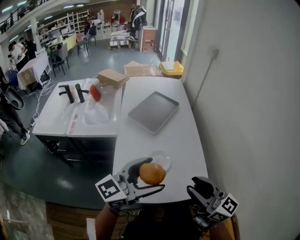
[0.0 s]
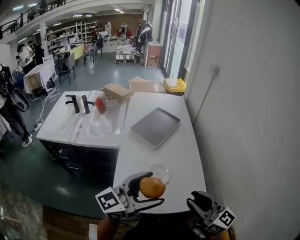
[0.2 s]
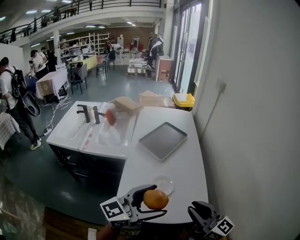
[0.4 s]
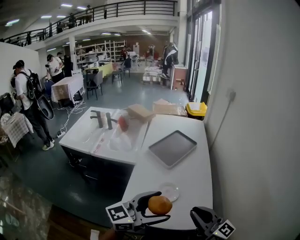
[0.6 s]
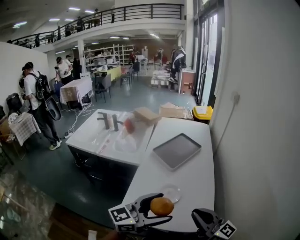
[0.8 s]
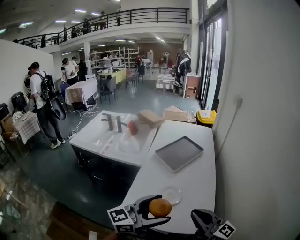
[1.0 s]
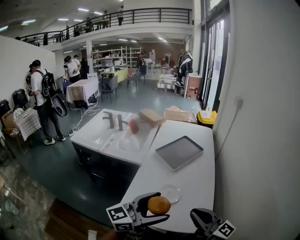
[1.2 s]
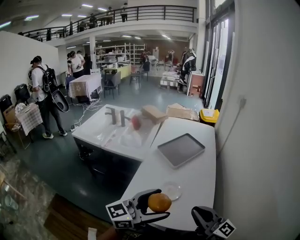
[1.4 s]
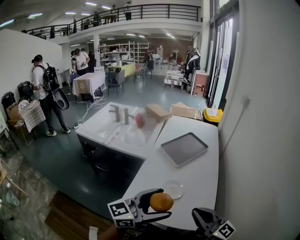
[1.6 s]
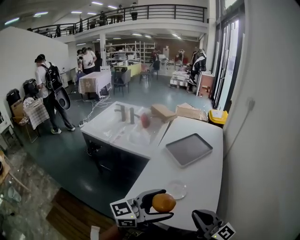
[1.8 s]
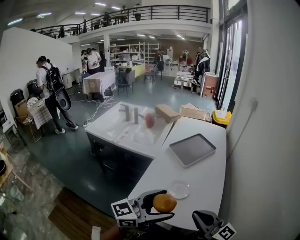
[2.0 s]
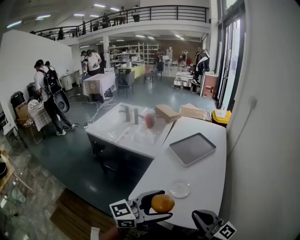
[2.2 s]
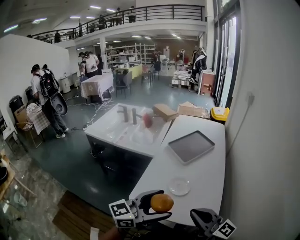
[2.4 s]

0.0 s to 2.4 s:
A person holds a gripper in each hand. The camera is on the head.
0.0 to 1.2 s: The left gripper travels backward and to the right by roughly 10 cm; the right gripper moves to the right, roughly 5 cm, and closes up.
1.2 to 2.4 s: The grippers make only small movements.

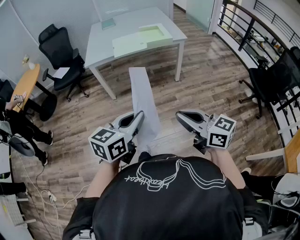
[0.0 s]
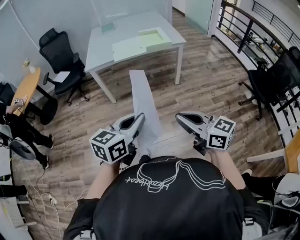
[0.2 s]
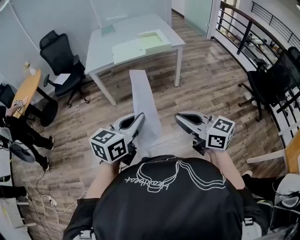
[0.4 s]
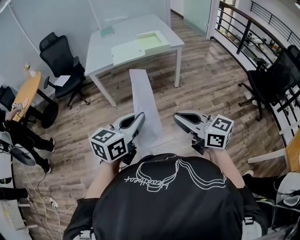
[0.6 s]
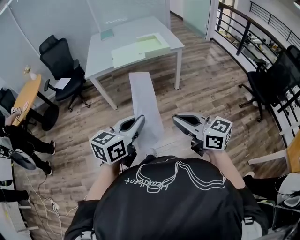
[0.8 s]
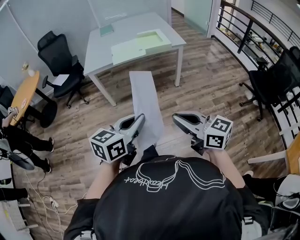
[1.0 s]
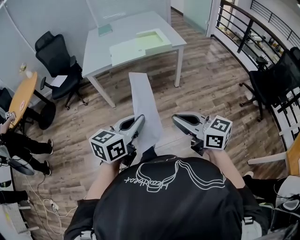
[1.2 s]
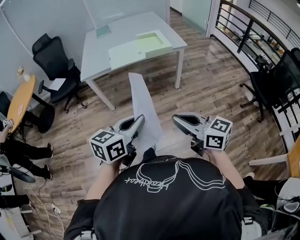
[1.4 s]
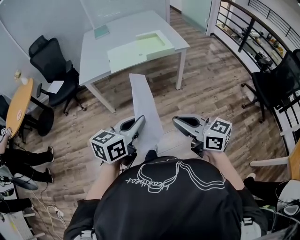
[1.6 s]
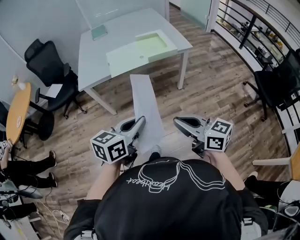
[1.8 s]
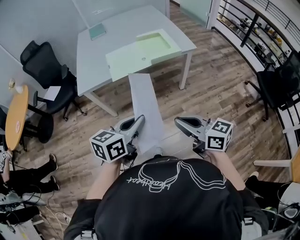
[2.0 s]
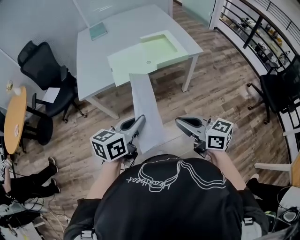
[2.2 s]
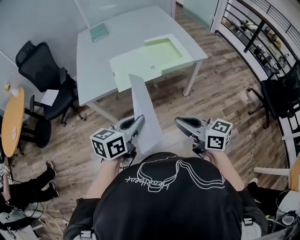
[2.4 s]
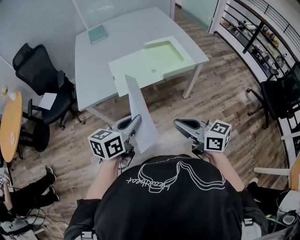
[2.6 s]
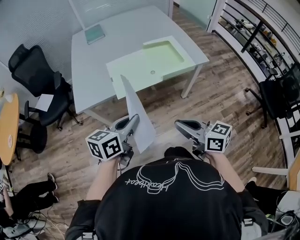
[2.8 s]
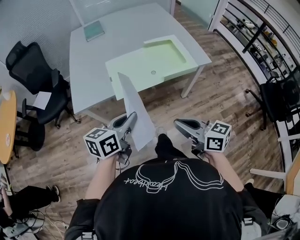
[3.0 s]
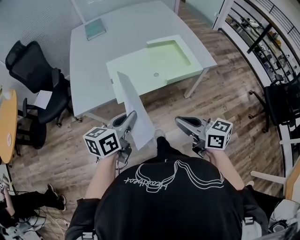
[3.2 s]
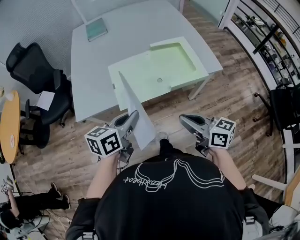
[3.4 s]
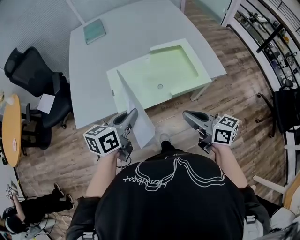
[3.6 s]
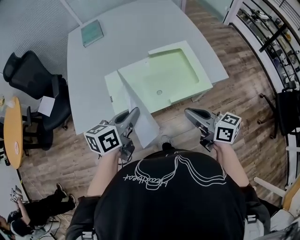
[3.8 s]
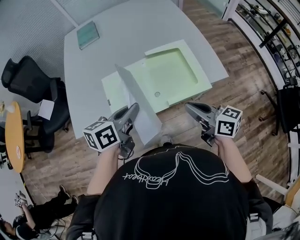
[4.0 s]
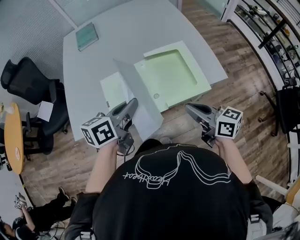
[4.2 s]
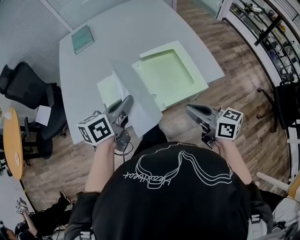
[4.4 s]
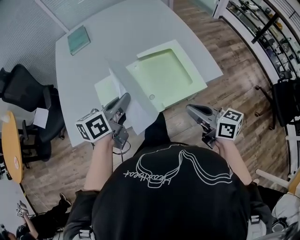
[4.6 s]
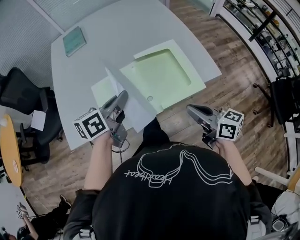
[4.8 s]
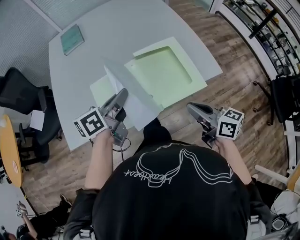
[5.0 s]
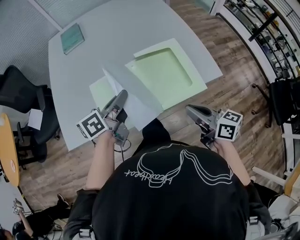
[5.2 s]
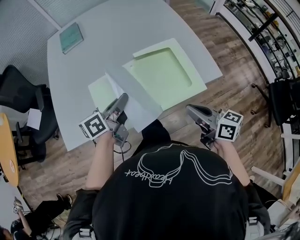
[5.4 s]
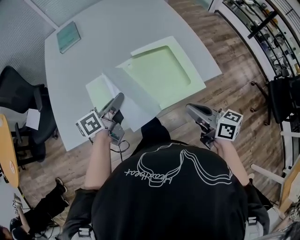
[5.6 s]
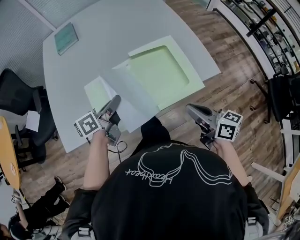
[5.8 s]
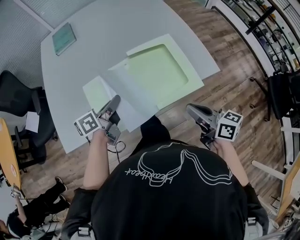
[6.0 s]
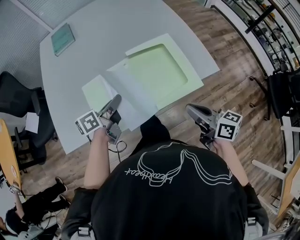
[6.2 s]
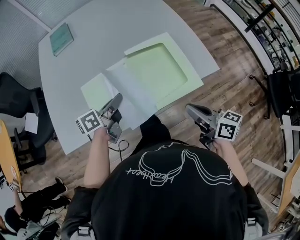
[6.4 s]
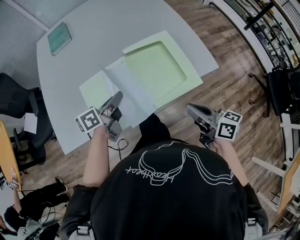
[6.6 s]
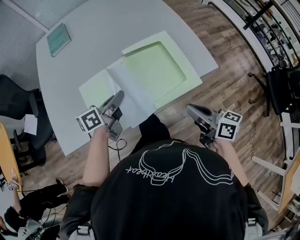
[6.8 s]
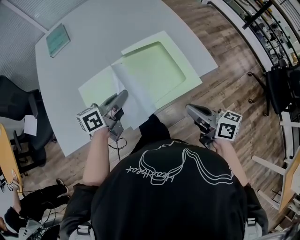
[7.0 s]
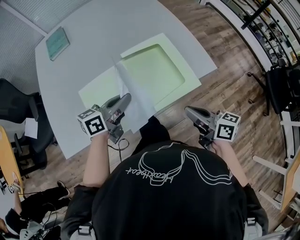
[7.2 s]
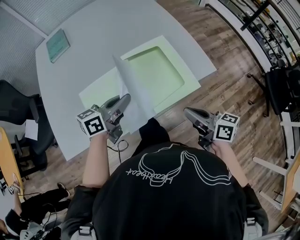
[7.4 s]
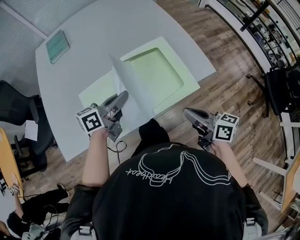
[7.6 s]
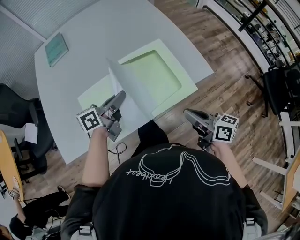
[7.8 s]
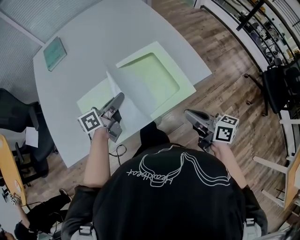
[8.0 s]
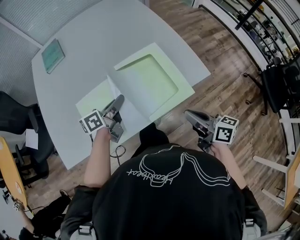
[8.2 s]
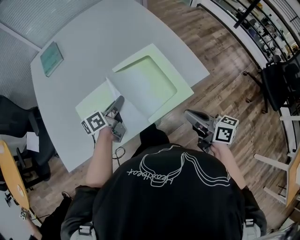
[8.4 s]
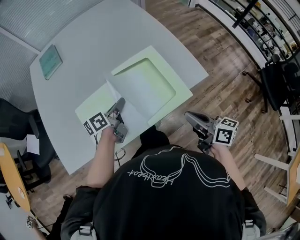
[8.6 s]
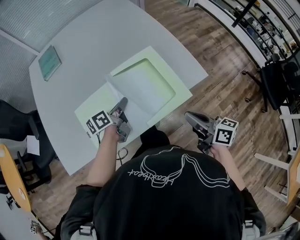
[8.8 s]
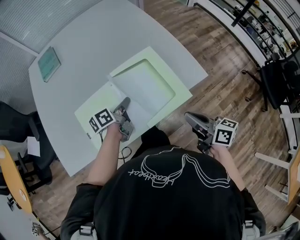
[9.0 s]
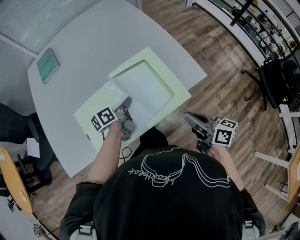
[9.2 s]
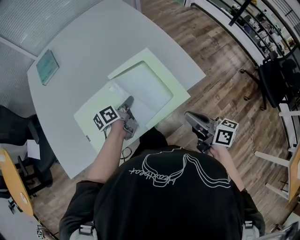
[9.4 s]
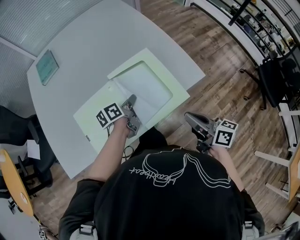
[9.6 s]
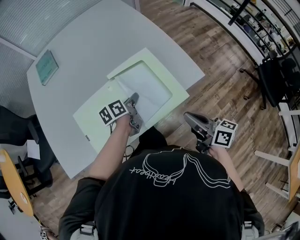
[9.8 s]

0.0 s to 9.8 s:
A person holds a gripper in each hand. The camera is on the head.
0.0 to 1.4 s: The grippers both shift forward by about 10 cm.
1.4 to 2.8 s: Both grippers are carried forward, approximately 40 cm.
2.8 to 4.2 s: Both grippers move forward, roughly 30 cm.
4.2 to 5.6 s: The left gripper shifts some 10 cm forward and downward, while the right gripper changes place by roughly 5 cm.
5.6 to 7.0 s: There are only small adjustments of the grippers.
7.0 to 8.4 s: The left gripper moves forward, roughly 5 cm.
8.4 to 9.8 s: The left gripper heads to the right and downward, covering approximately 10 cm.

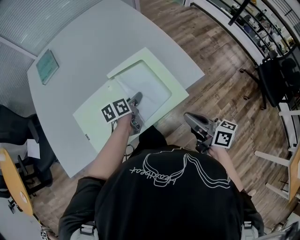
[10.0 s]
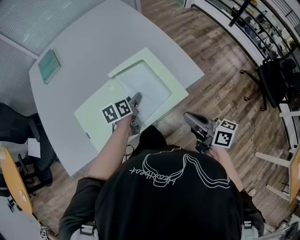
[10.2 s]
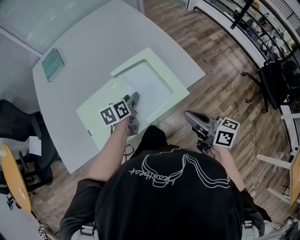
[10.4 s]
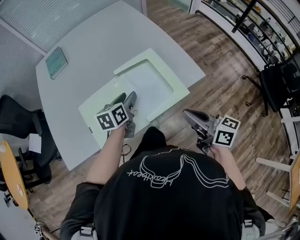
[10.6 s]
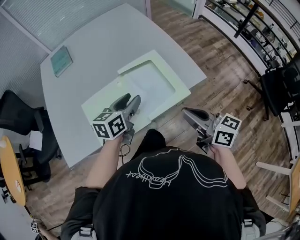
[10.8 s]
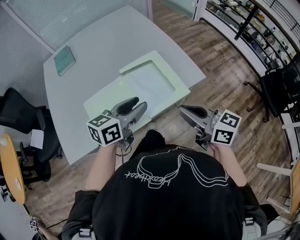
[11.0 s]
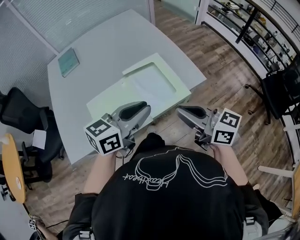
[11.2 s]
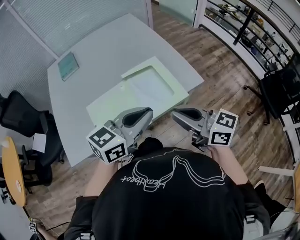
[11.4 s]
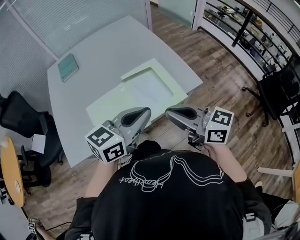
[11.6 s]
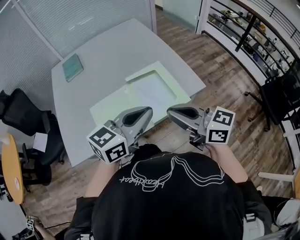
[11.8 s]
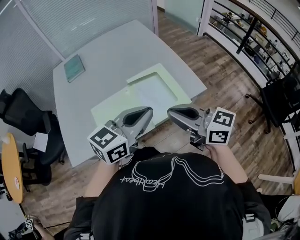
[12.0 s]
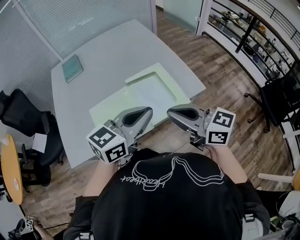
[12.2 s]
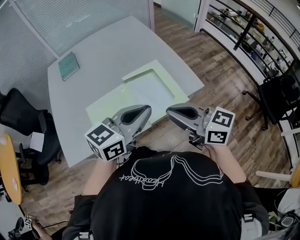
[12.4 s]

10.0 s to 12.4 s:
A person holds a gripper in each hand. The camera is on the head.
10.0 to 11.2 s: The right gripper travels upward and to the left by some 15 cm, and rotates roughly 30 degrees, while the left gripper goes some 30 cm upward and backward, and rotates approximately 50 degrees.
11.2 to 12.4 s: The grippers stay close to where they were, moving slightly.

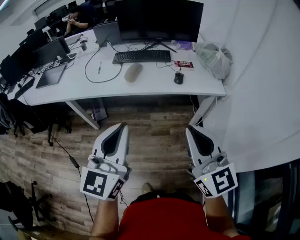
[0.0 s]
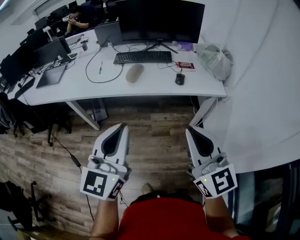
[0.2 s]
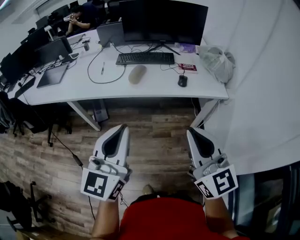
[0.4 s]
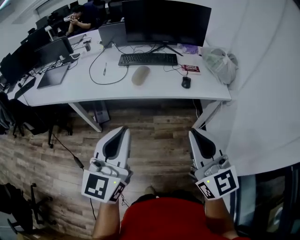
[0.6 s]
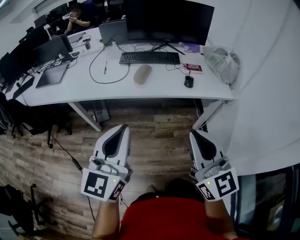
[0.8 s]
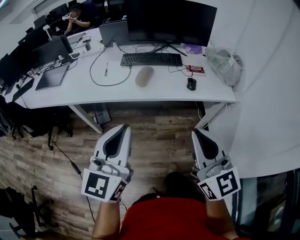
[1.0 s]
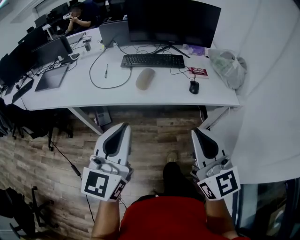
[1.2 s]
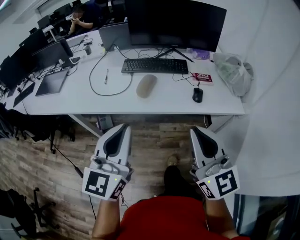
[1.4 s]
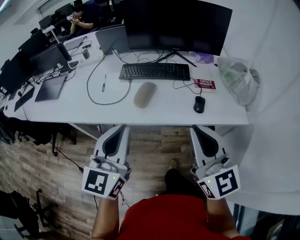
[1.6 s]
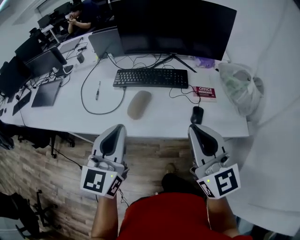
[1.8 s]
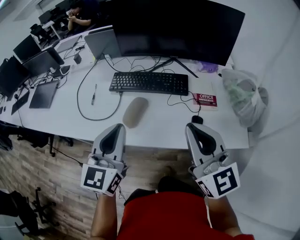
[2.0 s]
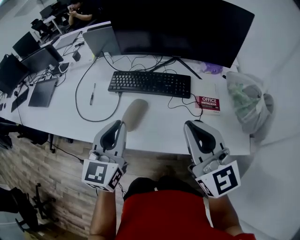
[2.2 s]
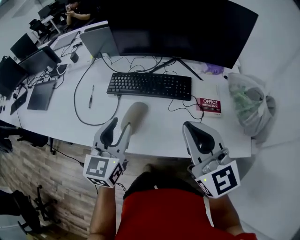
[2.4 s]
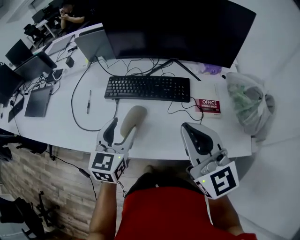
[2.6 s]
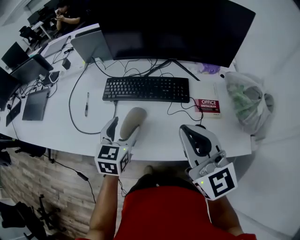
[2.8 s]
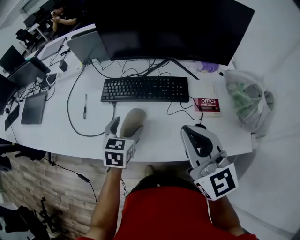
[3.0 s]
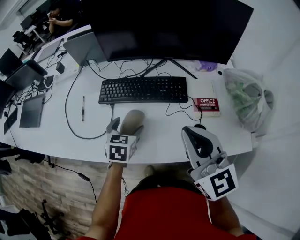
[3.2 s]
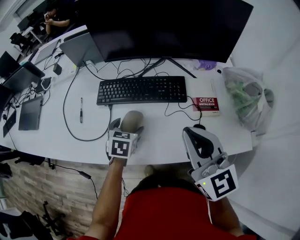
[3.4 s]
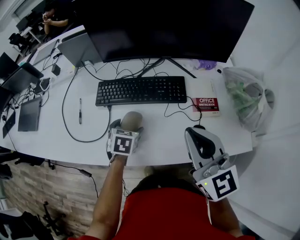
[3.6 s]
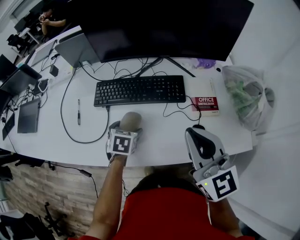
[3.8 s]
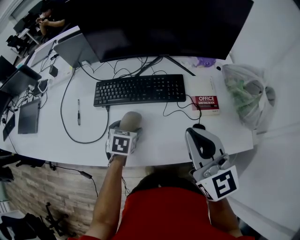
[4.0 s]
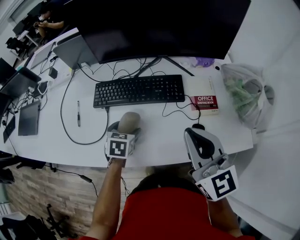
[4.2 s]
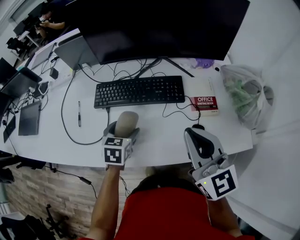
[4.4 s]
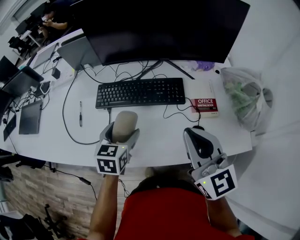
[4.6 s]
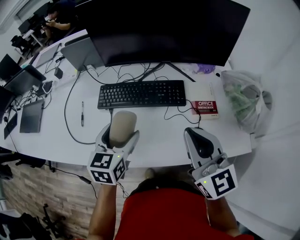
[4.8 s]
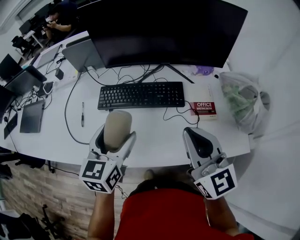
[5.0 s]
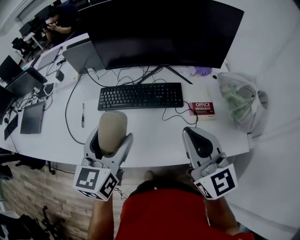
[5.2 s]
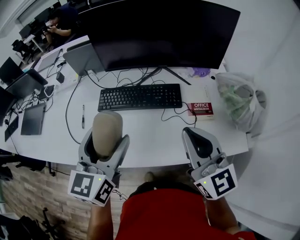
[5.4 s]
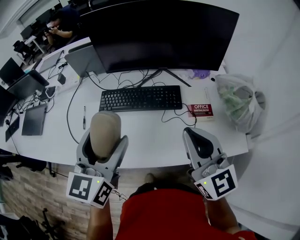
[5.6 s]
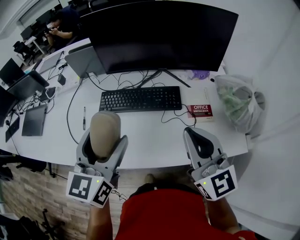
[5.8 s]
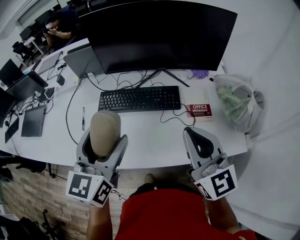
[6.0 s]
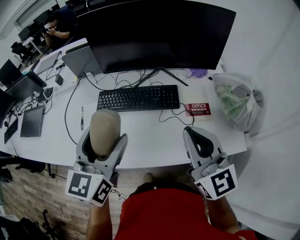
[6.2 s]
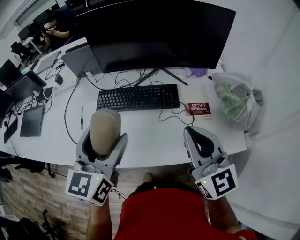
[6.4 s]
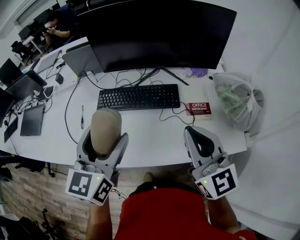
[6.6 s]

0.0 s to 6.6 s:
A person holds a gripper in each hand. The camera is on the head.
0.0 to 1.6 s: Both grippers move forward, roughly 20 cm.
1.6 to 3.2 s: The left gripper moves forward and downward, roughly 40 cm, angles its fingers downward, by some 40 degrees, and opens up. The right gripper is displaced forward by some 25 cm.
3.2 to 5.0 s: The left gripper is displaced upward by about 15 cm, and swivels some 20 degrees.
5.0 to 6.6 s: The left gripper heads upward, covering approximately 10 cm.

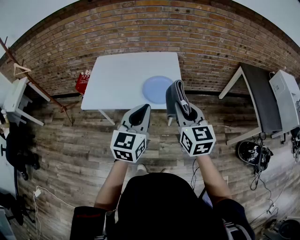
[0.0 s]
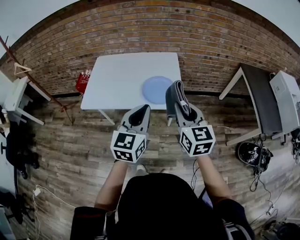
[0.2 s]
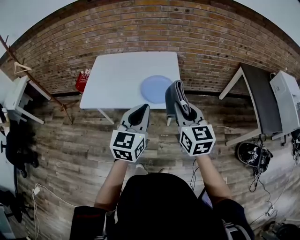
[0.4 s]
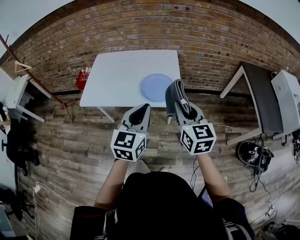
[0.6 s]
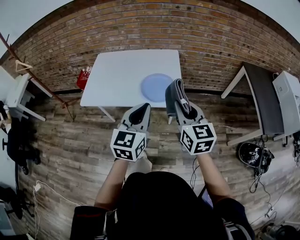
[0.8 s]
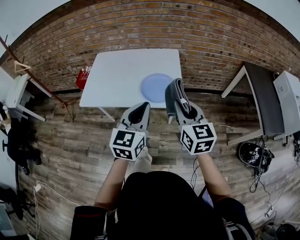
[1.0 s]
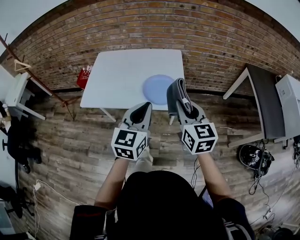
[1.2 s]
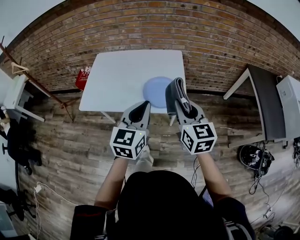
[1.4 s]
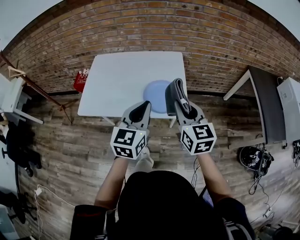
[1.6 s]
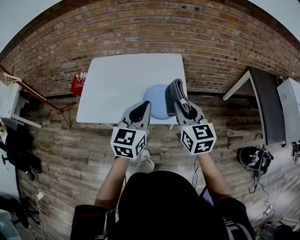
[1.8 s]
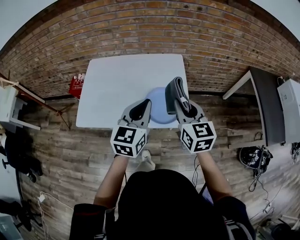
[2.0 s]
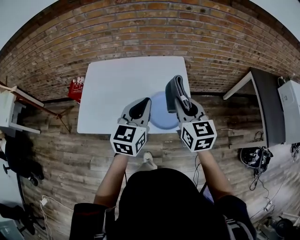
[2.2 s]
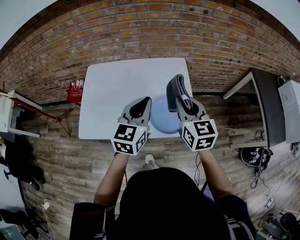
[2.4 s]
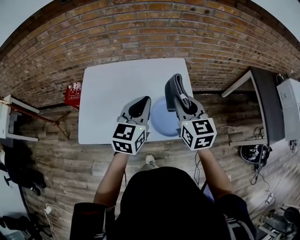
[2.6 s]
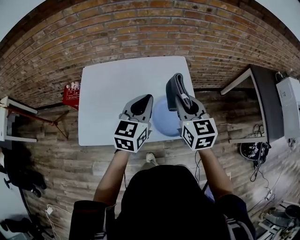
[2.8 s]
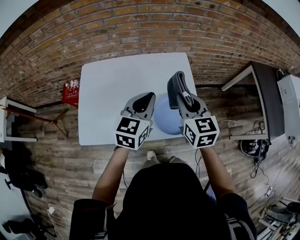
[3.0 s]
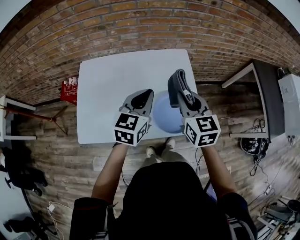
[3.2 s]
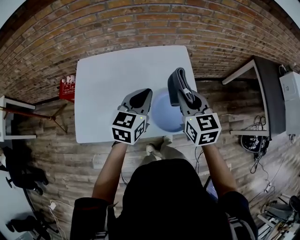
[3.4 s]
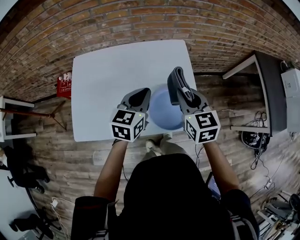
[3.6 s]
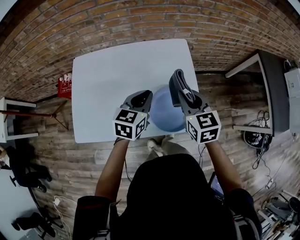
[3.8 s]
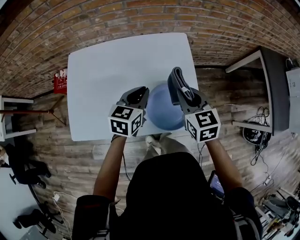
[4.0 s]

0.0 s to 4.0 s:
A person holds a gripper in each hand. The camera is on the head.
0.0 to 1.4 s: The grippers both shift forward by some 5 cm.
1.4 to 2.6 s: The left gripper travels forward by some 25 cm. The right gripper travels forward and to the left by about 25 cm.
2.6 to 4.0 s: Both grippers move downward and forward, some 15 cm. The left gripper rotates about 20 degrees.
